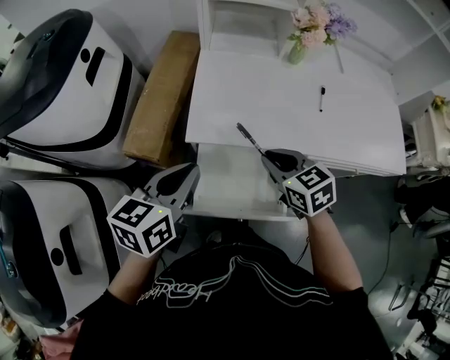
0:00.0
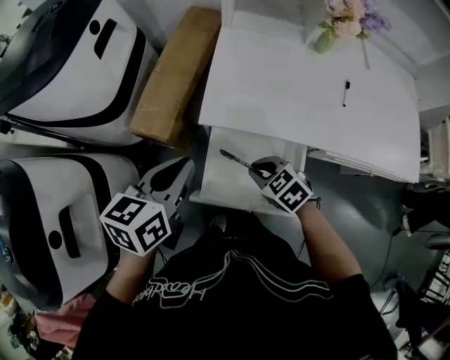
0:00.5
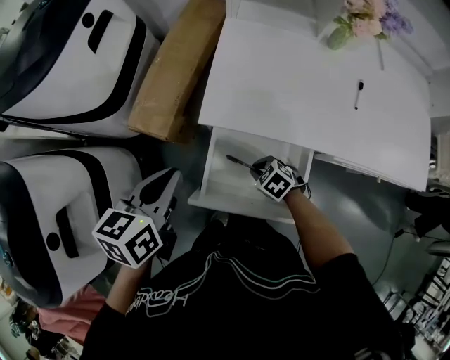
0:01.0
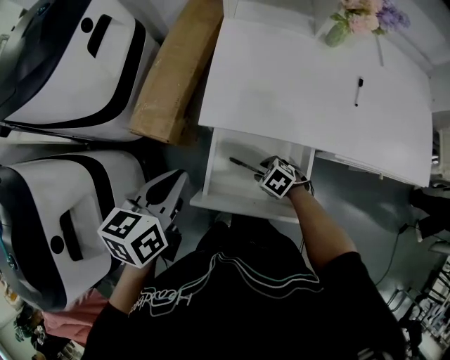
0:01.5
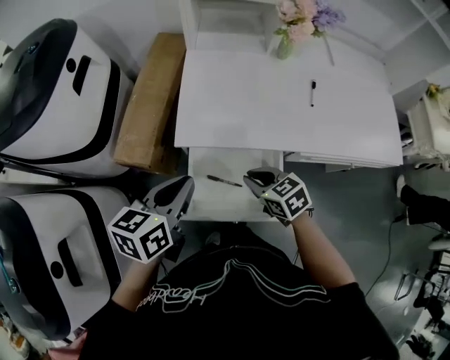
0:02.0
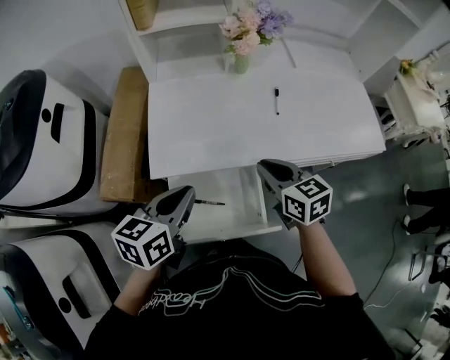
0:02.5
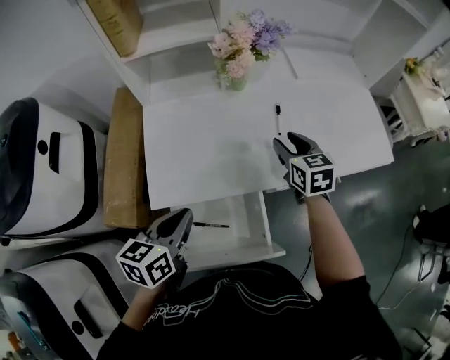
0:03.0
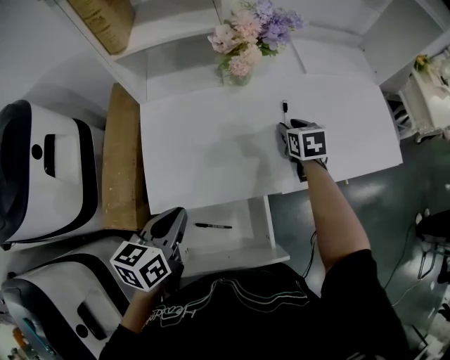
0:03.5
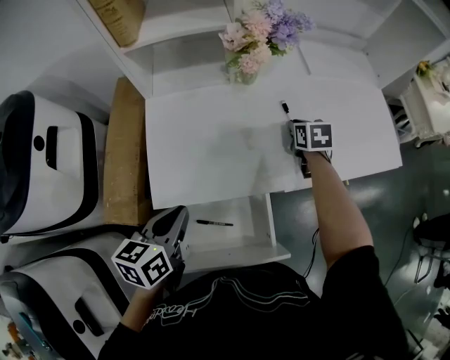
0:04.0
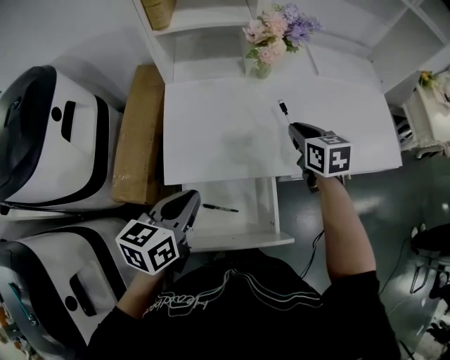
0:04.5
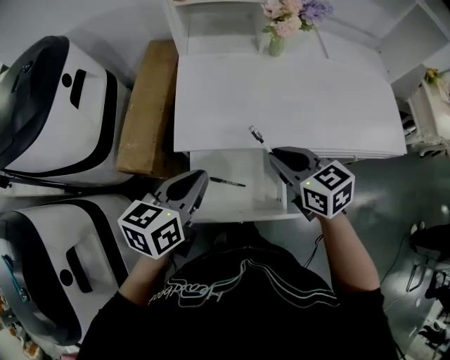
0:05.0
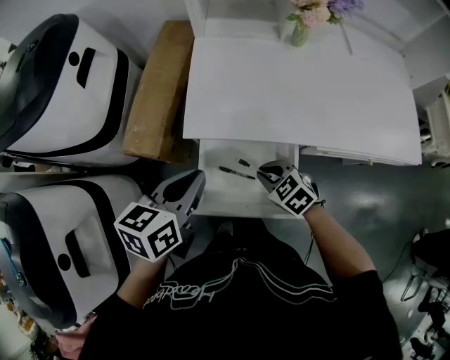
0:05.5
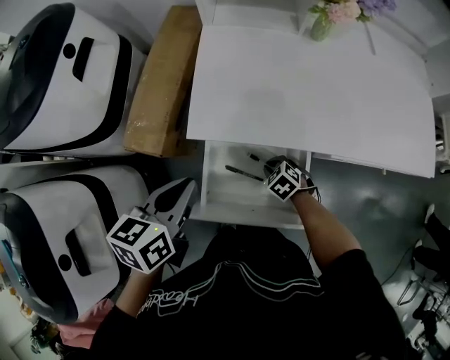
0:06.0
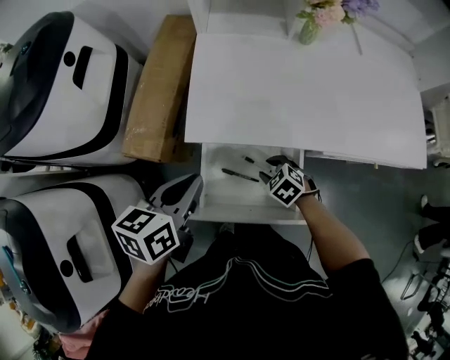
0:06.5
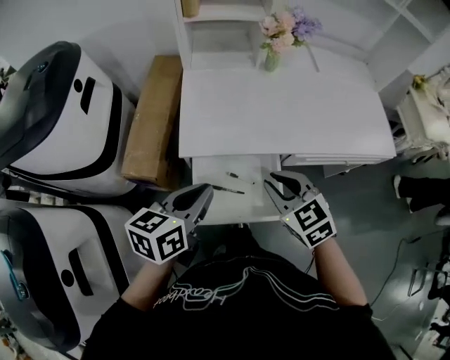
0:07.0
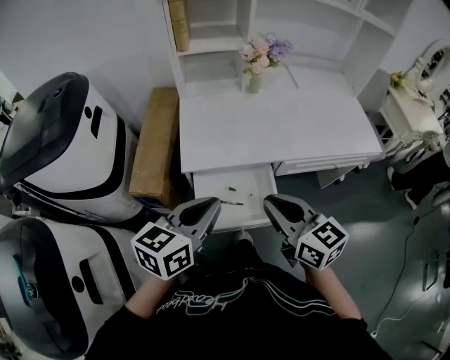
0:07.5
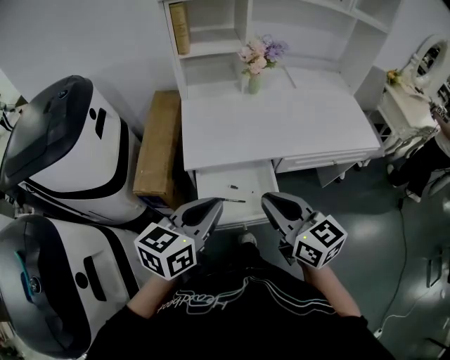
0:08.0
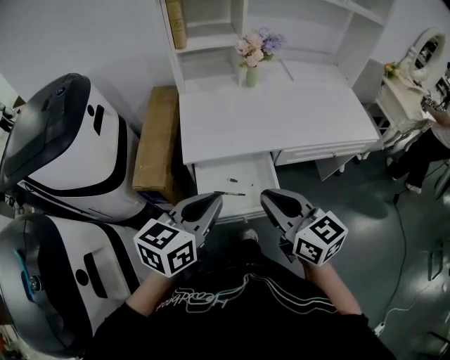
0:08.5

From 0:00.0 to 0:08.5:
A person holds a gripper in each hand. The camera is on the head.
From 0:00.0 to 0:02.0: The right gripper moves roughly 25 cm downward and comes back, and opens and closes again.
From 0:02.0 to 0:04.0: The left gripper shifts by roughly 15 cm, while the right gripper reaches about 10 cm upward, then returns, rotates some 40 degrees, and opens, then closes again.
From 0:04.0 to 0:06.5: The left gripper shifts by some 10 cm; the right gripper swings up and down, approximately 30 cm each way, with 2 reversals, rolls counterclockwise, seen from behind, by some 50 degrees, and opens up.
From 0:06.5 to 0:08.5: The right gripper is displaced upward and backward by roughly 40 cm, angles its fingers upward, by about 50 degrees, and closes up. The left gripper shifts about 20 cm backward and upward, and swivels roughly 30 degrees.

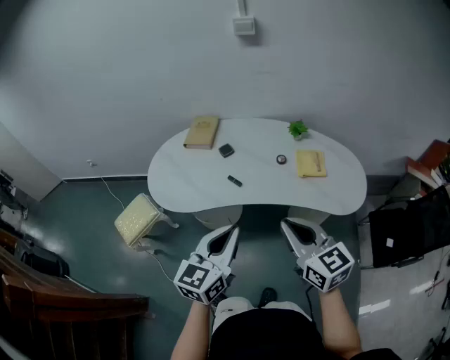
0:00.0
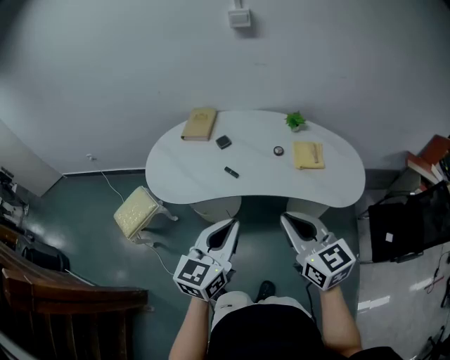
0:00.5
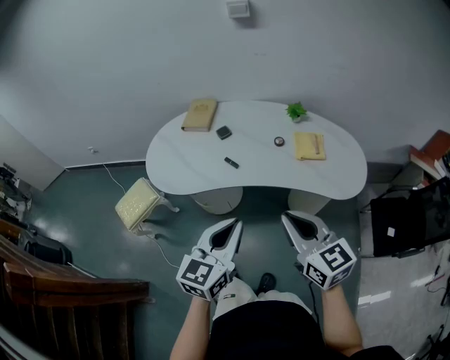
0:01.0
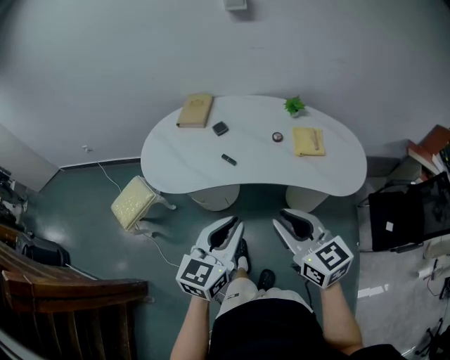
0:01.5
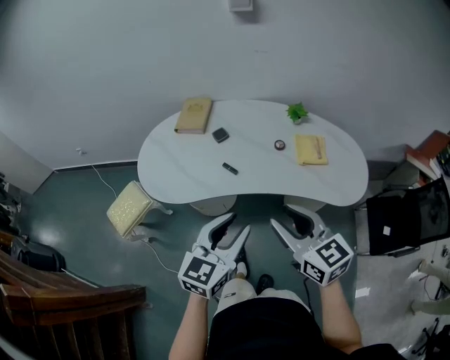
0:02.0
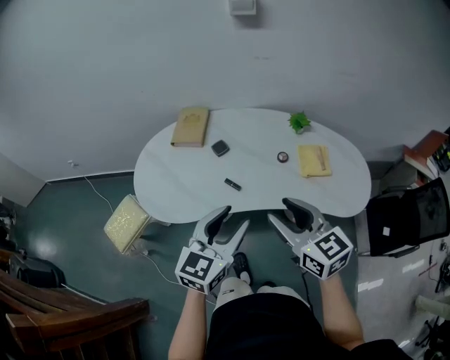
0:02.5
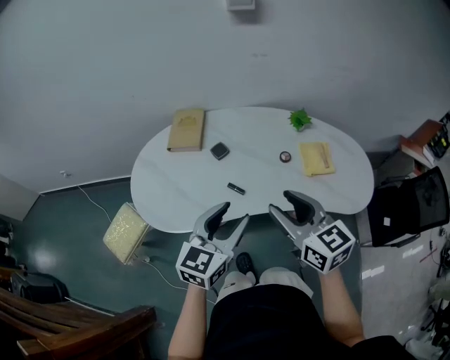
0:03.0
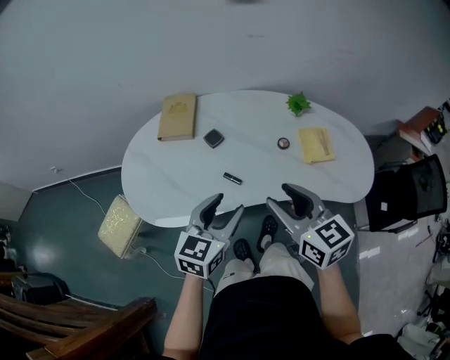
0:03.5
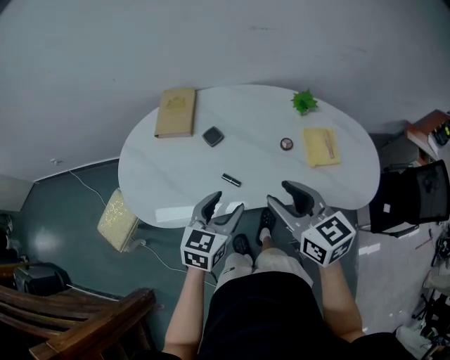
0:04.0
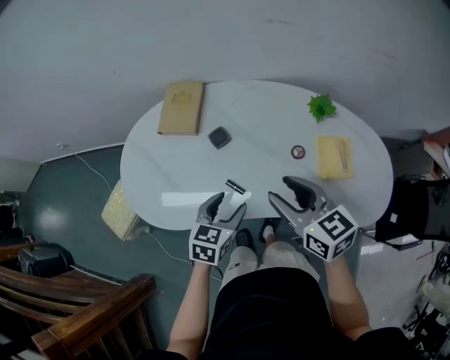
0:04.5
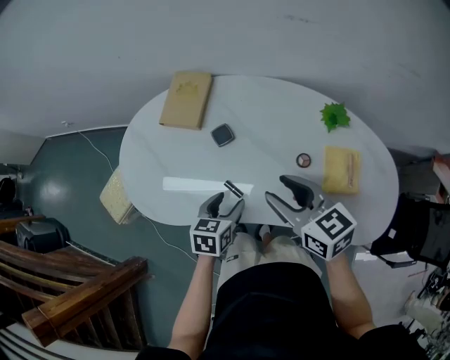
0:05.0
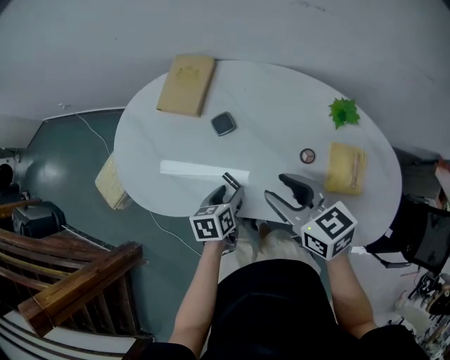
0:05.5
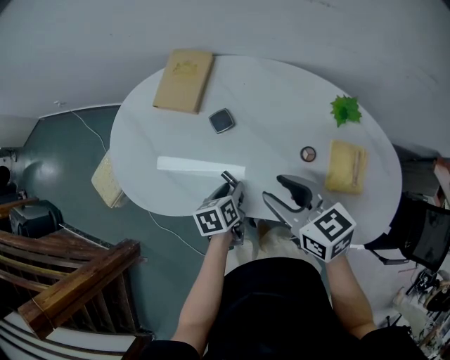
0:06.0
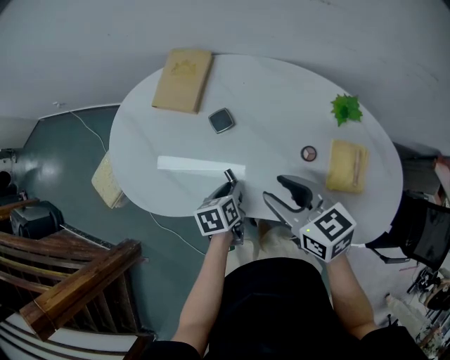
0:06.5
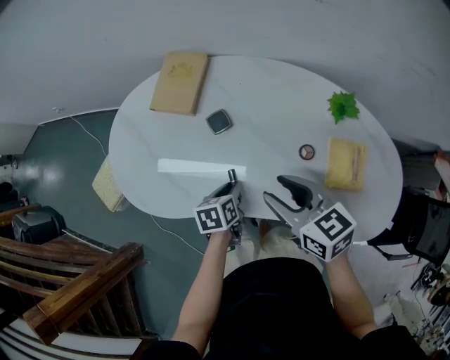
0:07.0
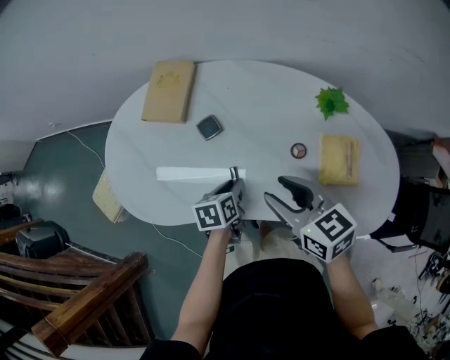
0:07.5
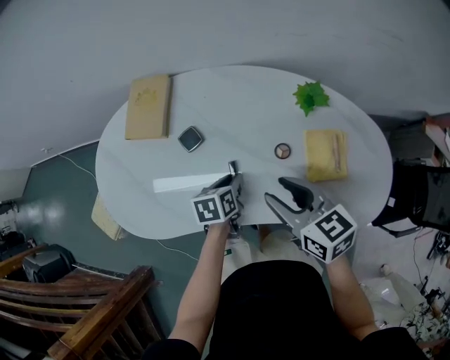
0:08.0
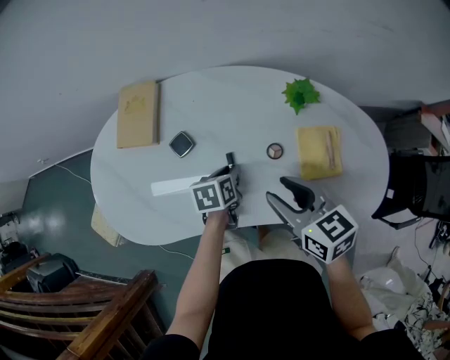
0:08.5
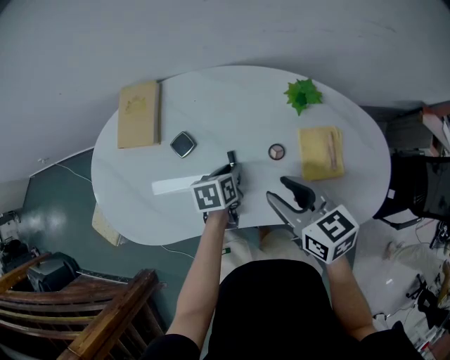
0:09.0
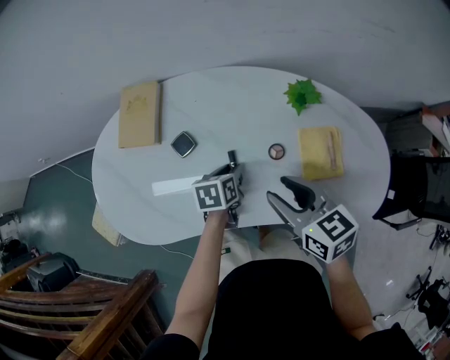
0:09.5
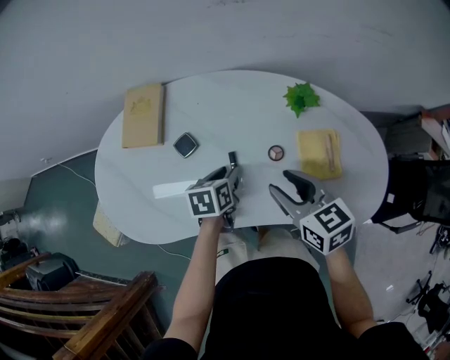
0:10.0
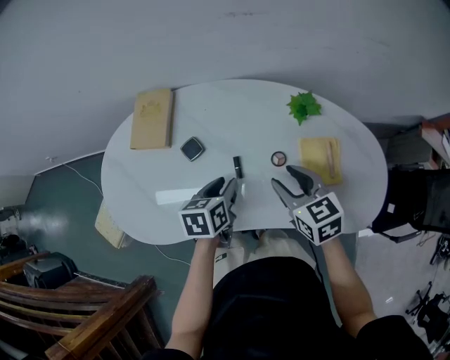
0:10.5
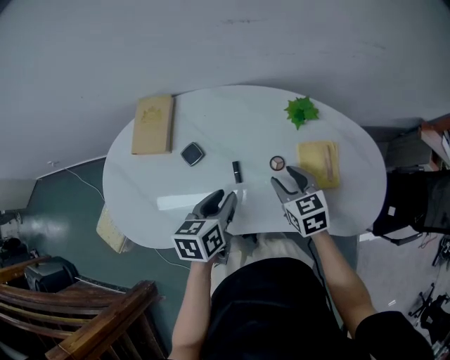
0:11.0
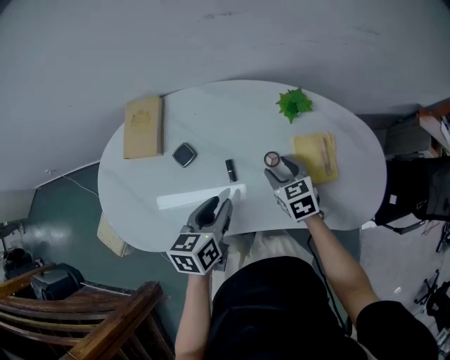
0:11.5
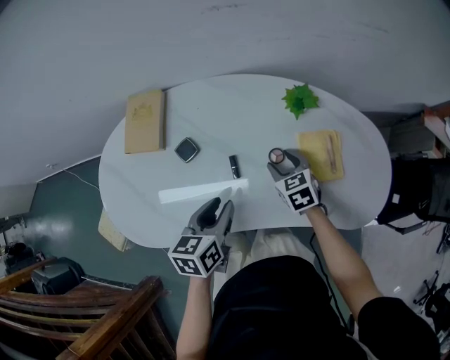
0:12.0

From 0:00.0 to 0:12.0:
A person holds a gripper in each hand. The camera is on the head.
From 0:00.0 to 0:02.0: The right gripper opens up; the left gripper opens.
From 0:02.0 to 0:04.0: The right gripper goes roughly 20 cm forward, while the left gripper moves forward and downward, roughly 25 cm.
From 0:04.0 to 0:06.0: The left gripper travels downward by roughly 20 cm, and rolls counterclockwise, seen from behind, by approximately 50 degrees; the right gripper heads forward and downward, covering some 15 cm, and swivels some 20 degrees.
From 0:06.0 to 0:08.0: The two grippers go roughly 10 cm to the right.
From 0:08.0 to 0:10.0: The grippers move only a little.
From 0:10.0 to 0:12.0: The right gripper moves downward and forward, about 15 cm, and changes its angle by about 20 degrees; the left gripper travels upward and backward by approximately 10 cm.

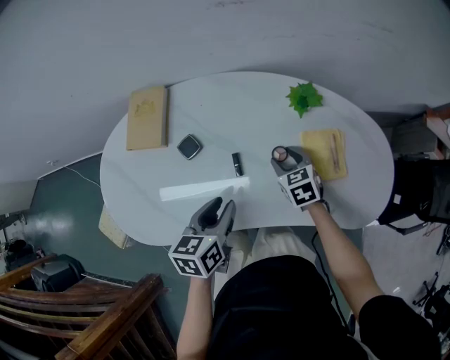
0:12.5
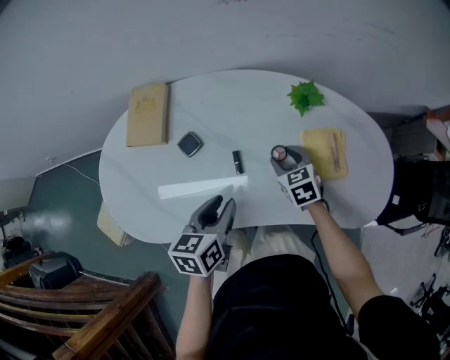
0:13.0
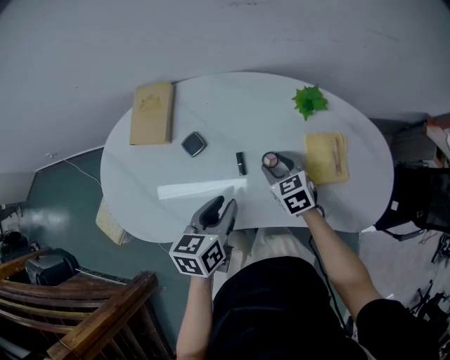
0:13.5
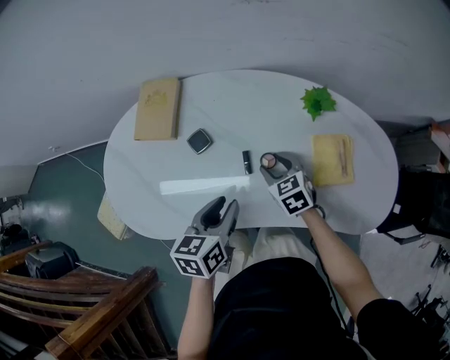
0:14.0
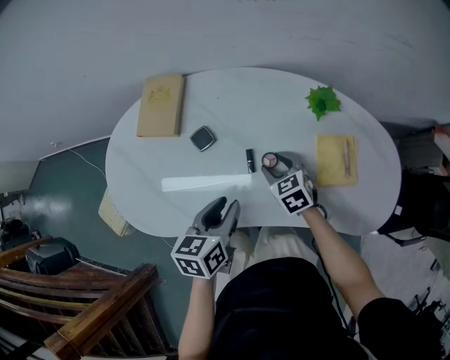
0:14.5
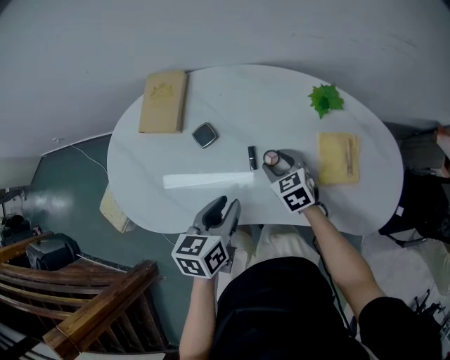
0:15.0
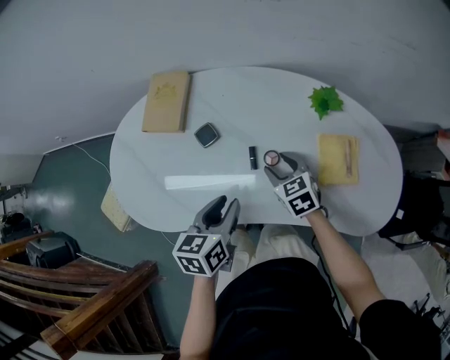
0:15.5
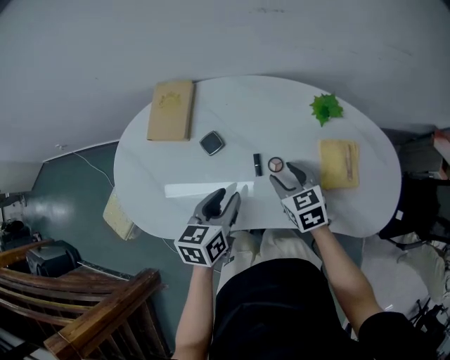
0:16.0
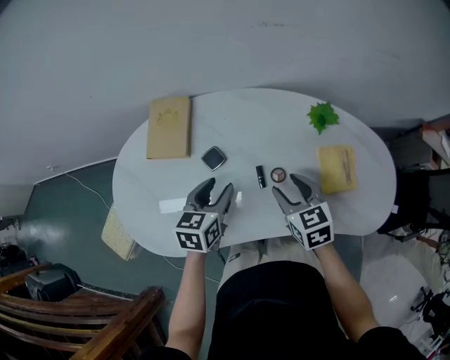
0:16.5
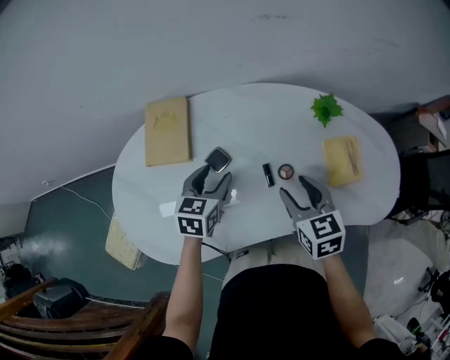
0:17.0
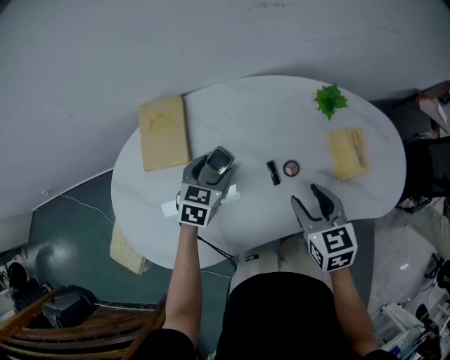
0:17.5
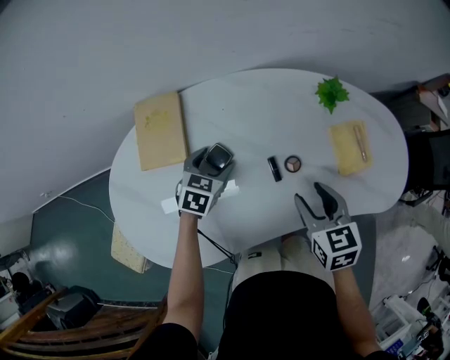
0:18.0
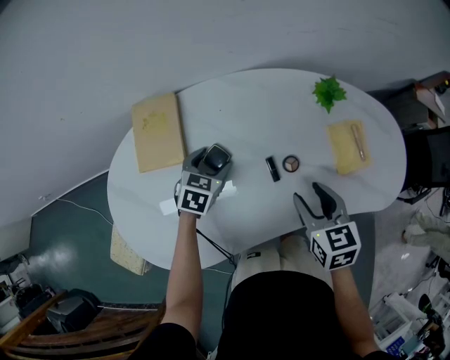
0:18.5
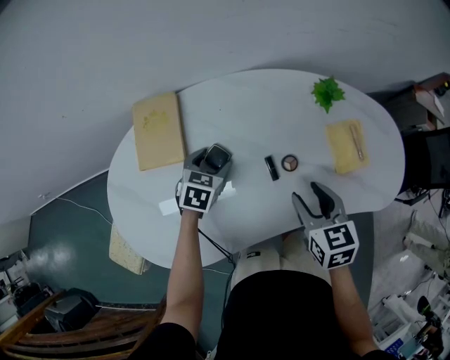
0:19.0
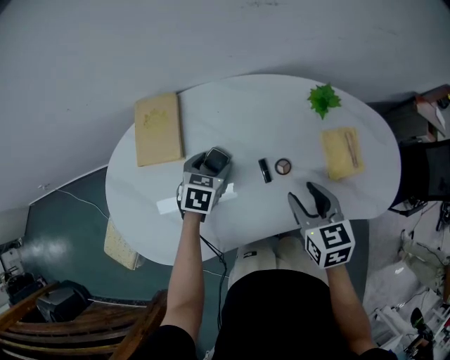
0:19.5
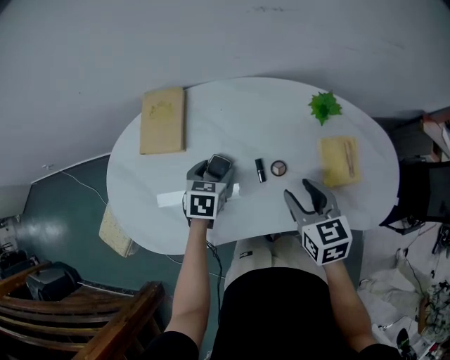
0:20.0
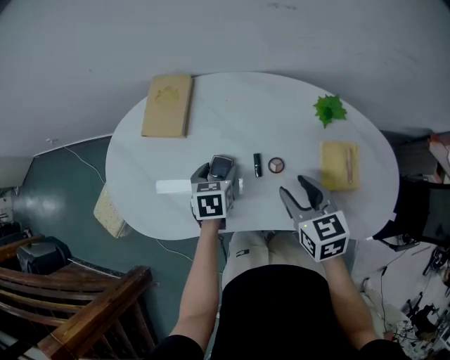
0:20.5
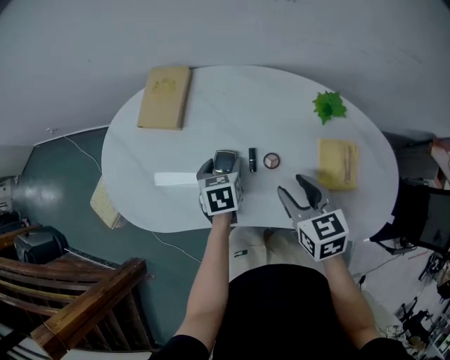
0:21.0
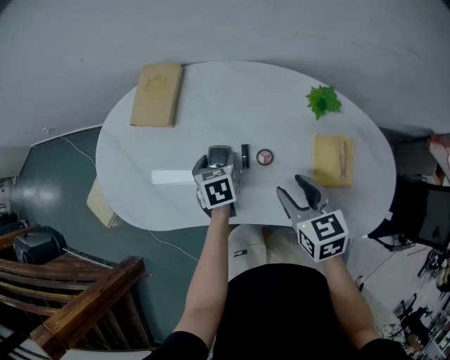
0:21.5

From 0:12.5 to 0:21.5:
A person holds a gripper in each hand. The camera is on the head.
From 0:12.5 to 0:14.5: The right gripper is displaced to the left by about 10 cm.
From 0:14.5 to 0:17.0: The left gripper is displaced forward and to the left by roughly 15 cm, and changes its angle by approximately 20 degrees. Meanwhile the right gripper goes roughly 15 cm upward, and rotates roughly 20 degrees.
From 0:17.0 to 0:19.5: The left gripper moves downward, approximately 5 cm.
From 0:19.5 to 0:21.5: The left gripper changes place by some 10 cm, and changes its angle by approximately 40 degrees.
